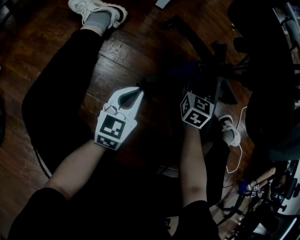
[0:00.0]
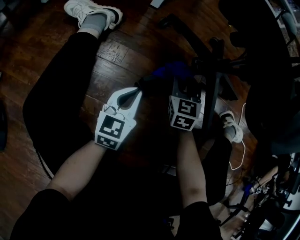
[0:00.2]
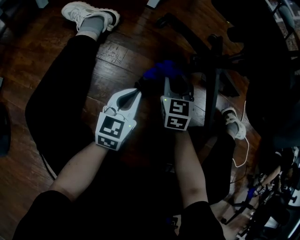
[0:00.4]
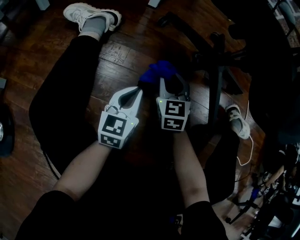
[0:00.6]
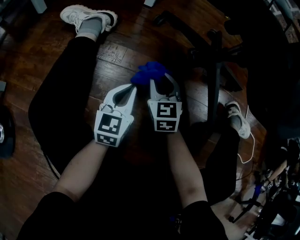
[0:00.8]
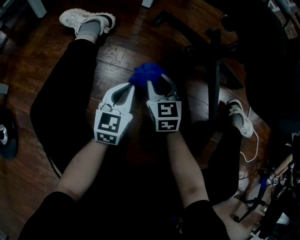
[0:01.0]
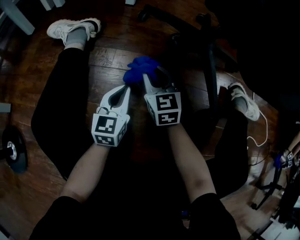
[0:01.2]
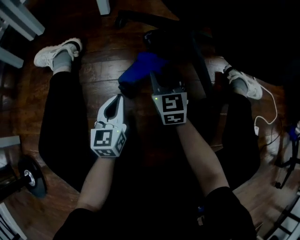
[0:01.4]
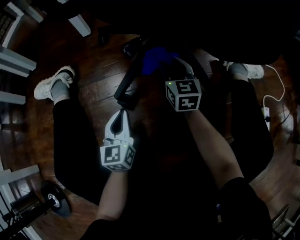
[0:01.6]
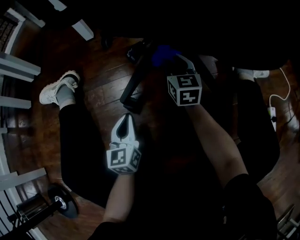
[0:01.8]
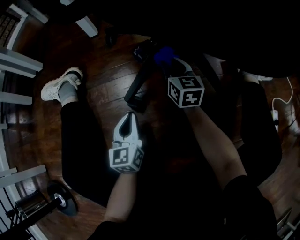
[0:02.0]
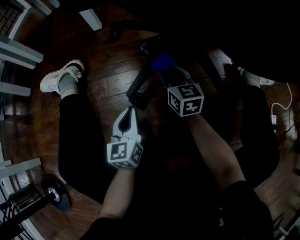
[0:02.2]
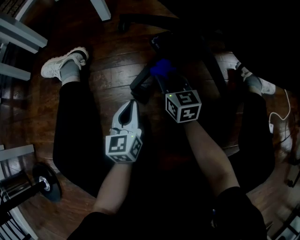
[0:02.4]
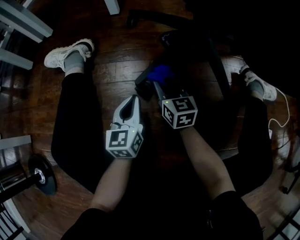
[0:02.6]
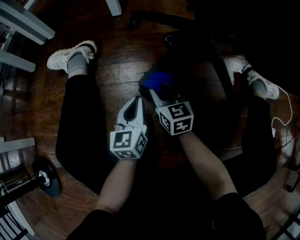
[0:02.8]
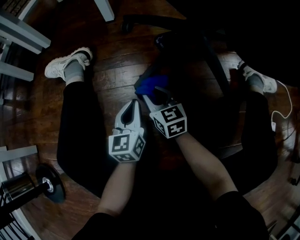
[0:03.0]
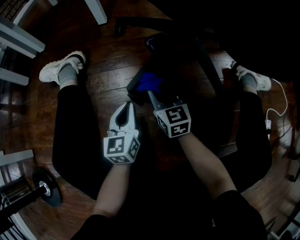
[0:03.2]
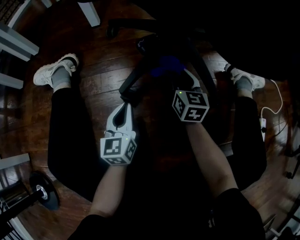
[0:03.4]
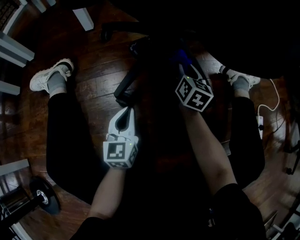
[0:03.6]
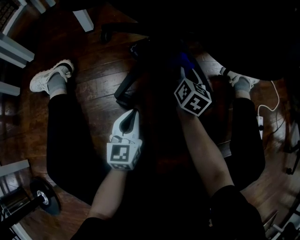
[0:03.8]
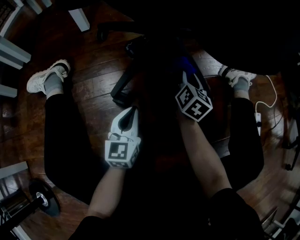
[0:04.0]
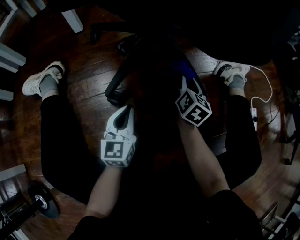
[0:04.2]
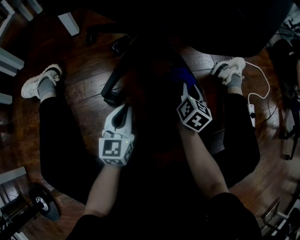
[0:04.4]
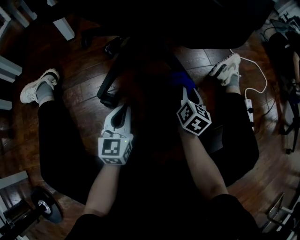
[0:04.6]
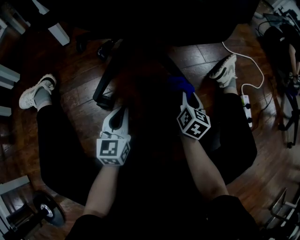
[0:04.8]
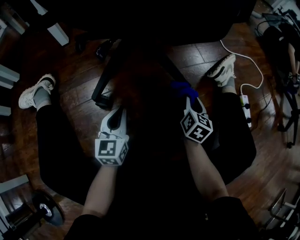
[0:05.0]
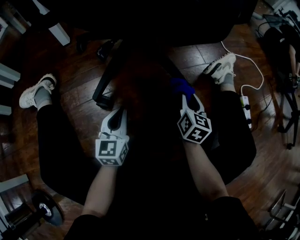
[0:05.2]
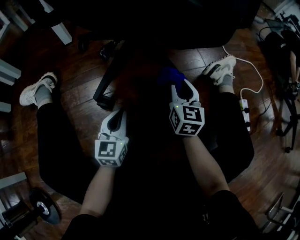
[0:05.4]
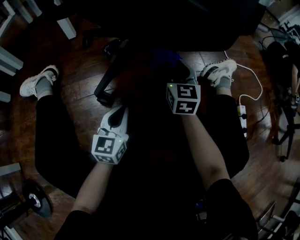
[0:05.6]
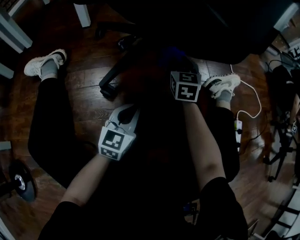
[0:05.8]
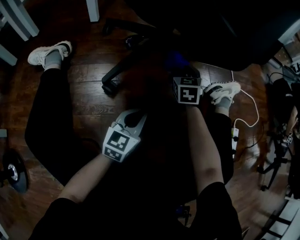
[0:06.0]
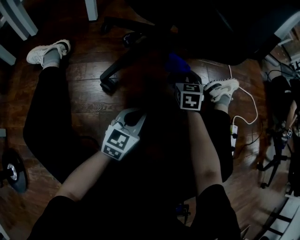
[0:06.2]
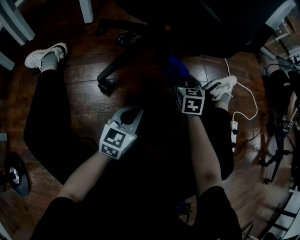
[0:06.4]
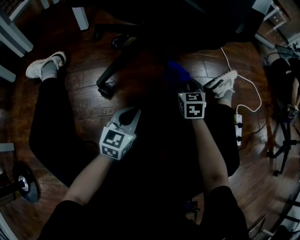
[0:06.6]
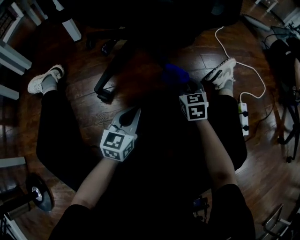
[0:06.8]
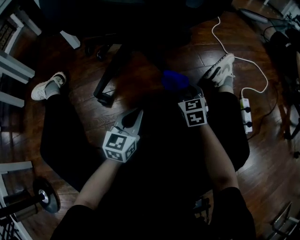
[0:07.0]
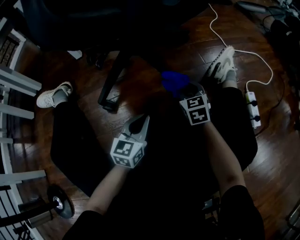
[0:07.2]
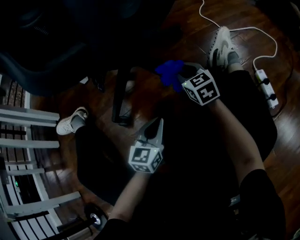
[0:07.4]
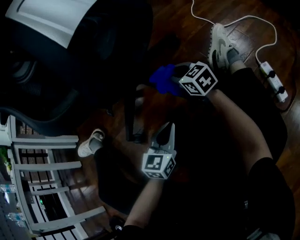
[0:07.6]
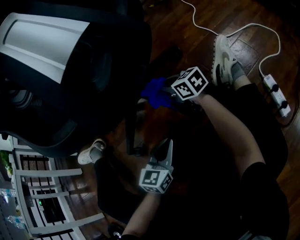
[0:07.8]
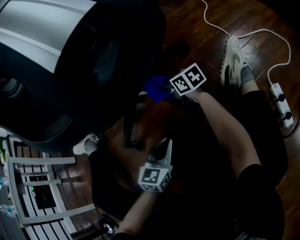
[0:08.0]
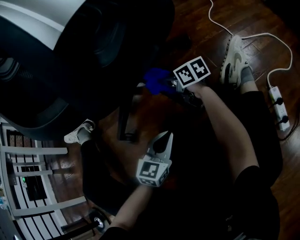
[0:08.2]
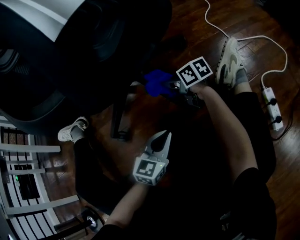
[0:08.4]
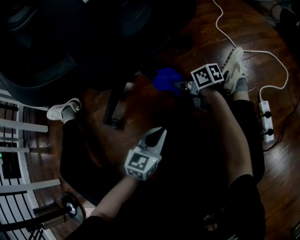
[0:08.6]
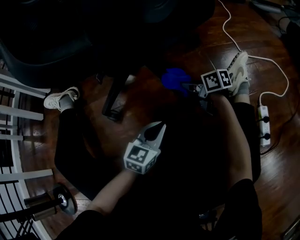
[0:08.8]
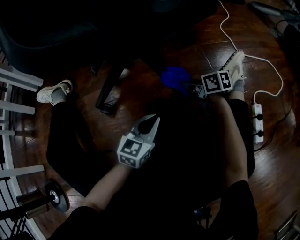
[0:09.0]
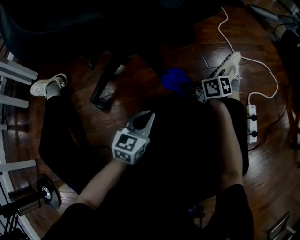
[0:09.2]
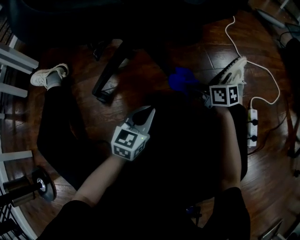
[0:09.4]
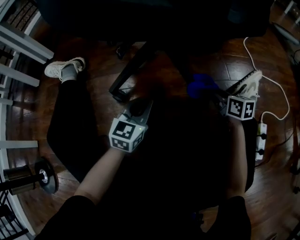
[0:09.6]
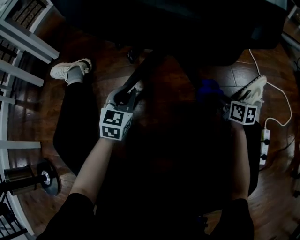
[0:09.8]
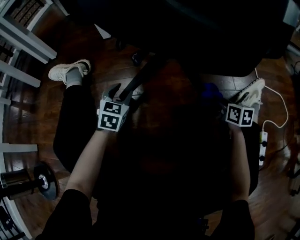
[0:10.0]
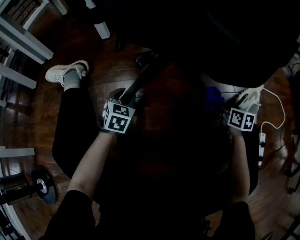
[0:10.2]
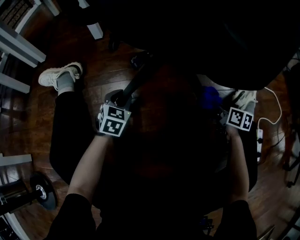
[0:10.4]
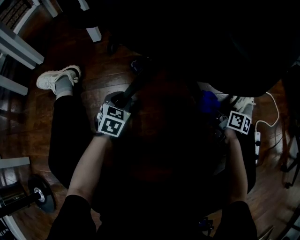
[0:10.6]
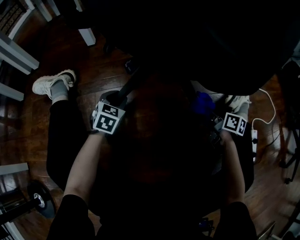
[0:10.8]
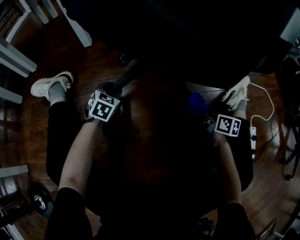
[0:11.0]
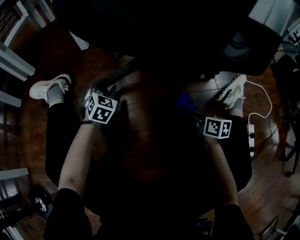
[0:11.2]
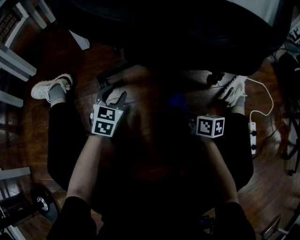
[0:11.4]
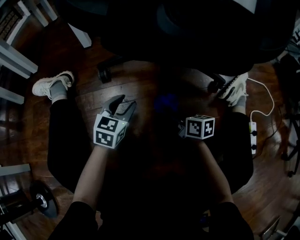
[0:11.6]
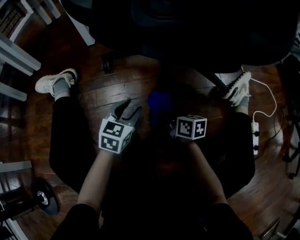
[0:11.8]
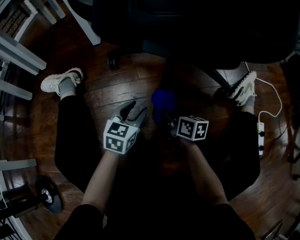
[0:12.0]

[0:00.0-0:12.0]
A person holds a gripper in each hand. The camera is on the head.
0:00.0 to 0:01.6: The right gripper heads to the right, covering roughly 5 cm, and turns by roughly 20 degrees.
0:01.6 to 0:03.0: The right gripper is displaced to the left, backward and downward by some 20 cm, and rotates about 30 degrees.
0:03.0 to 0:04.4: The right gripper changes place by roughly 30 cm, and turns by roughly 60 degrees, while the left gripper changes place by about 10 cm, and rotates approximately 20 degrees.
0:04.4 to 0:06.0: The left gripper goes some 10 cm to the right; the right gripper moves forward and to the left, some 10 cm, and twists about 50 degrees counterclockwise, seen from behind.
0:06.0 to 0:07.6: The grippers both shift to the right by about 10 cm. The right gripper changes its angle by approximately 40 degrees.
0:07.6 to 0:09.0: The right gripper goes approximately 10 cm downward, and swivels approximately 40 degrees.
0:09.0 to 0:10.4: The left gripper heads to the left and forward, covering approximately 25 cm, swivels about 30 degrees, and opens its fingers; the right gripper turns by about 20 degrees.
0:10.4 to 0:12.0: The left gripper is displaced backward and to the right by approximately 10 cm, and changes its angle by roughly 20 degrees; the right gripper heads to the left, covering approximately 20 cm.

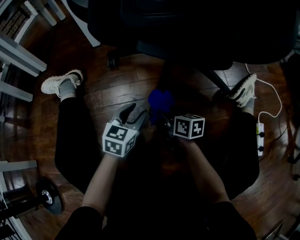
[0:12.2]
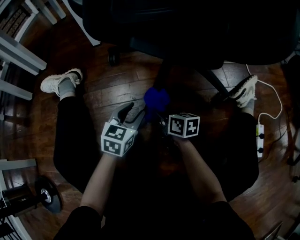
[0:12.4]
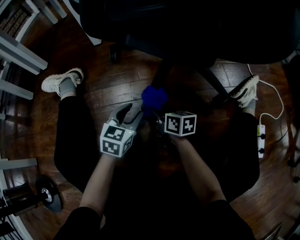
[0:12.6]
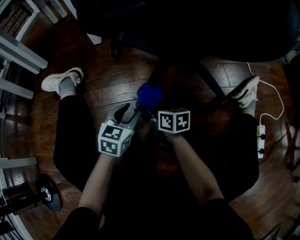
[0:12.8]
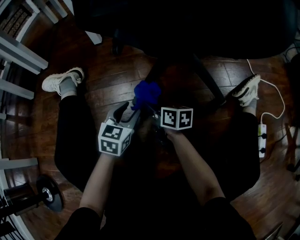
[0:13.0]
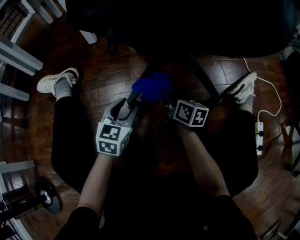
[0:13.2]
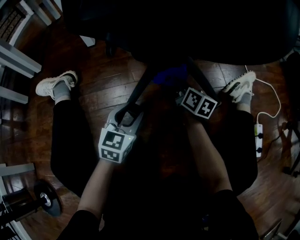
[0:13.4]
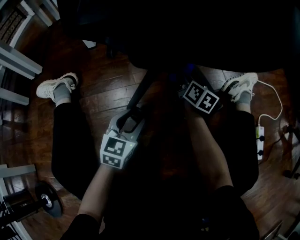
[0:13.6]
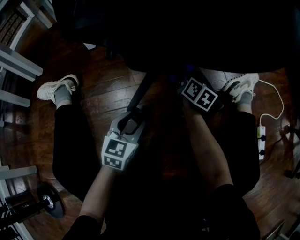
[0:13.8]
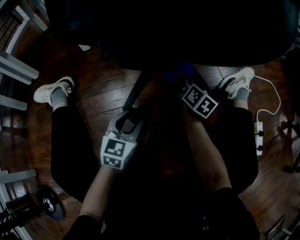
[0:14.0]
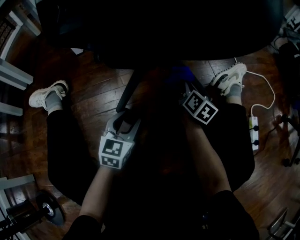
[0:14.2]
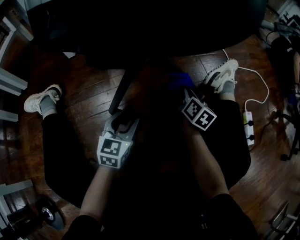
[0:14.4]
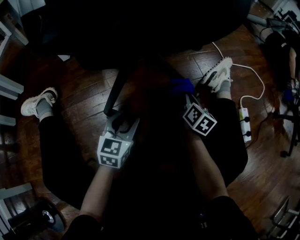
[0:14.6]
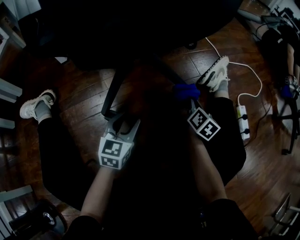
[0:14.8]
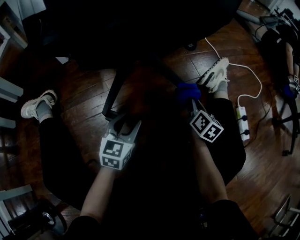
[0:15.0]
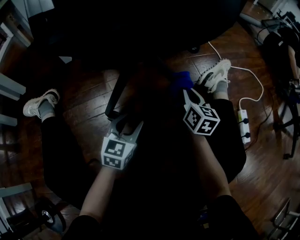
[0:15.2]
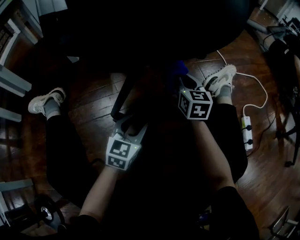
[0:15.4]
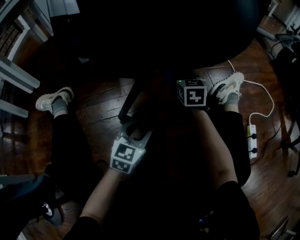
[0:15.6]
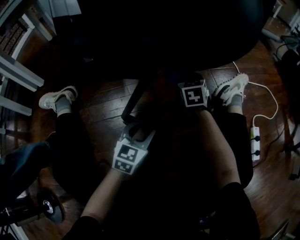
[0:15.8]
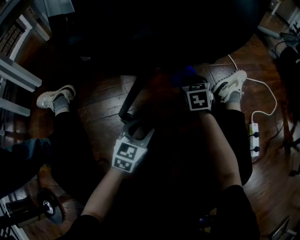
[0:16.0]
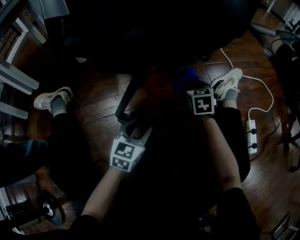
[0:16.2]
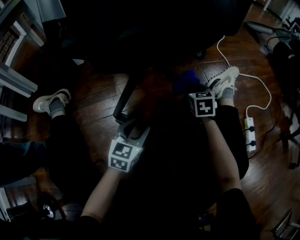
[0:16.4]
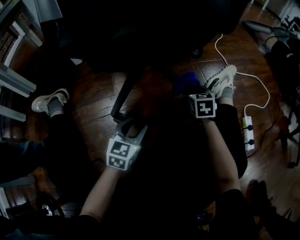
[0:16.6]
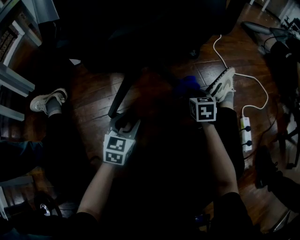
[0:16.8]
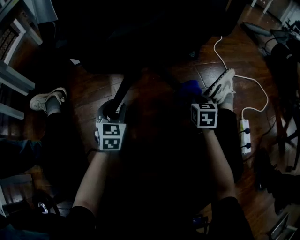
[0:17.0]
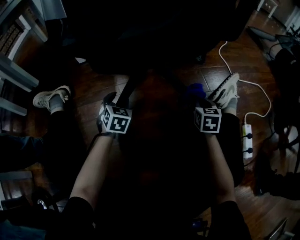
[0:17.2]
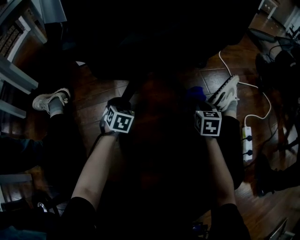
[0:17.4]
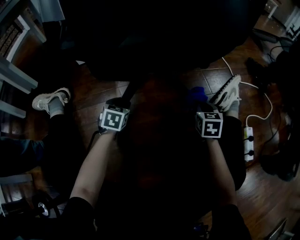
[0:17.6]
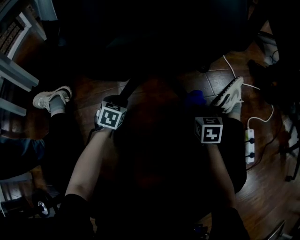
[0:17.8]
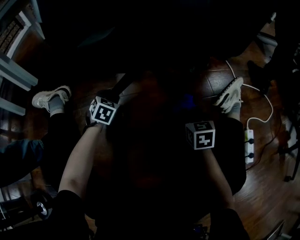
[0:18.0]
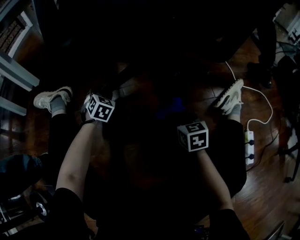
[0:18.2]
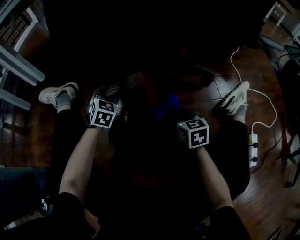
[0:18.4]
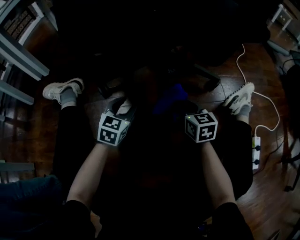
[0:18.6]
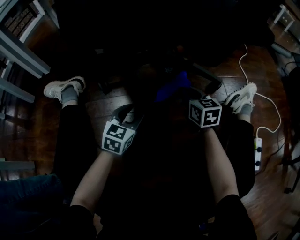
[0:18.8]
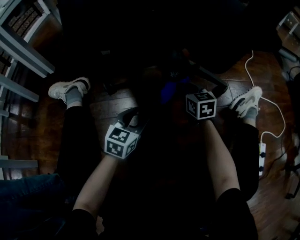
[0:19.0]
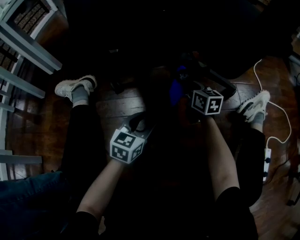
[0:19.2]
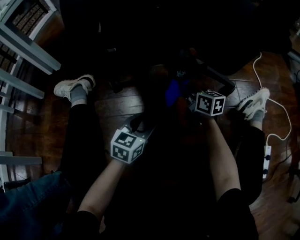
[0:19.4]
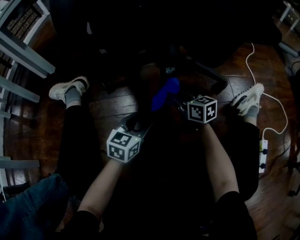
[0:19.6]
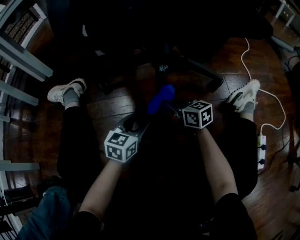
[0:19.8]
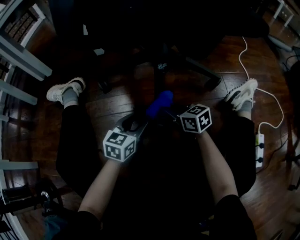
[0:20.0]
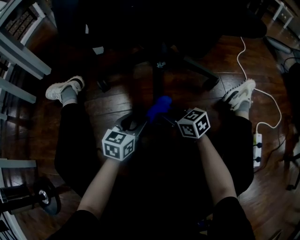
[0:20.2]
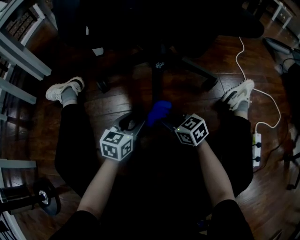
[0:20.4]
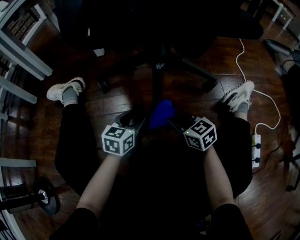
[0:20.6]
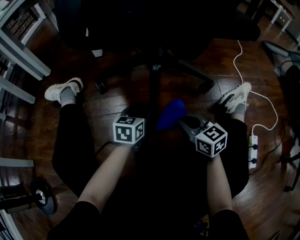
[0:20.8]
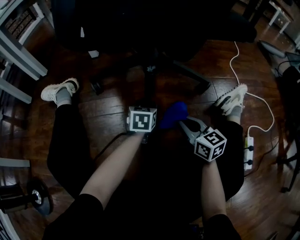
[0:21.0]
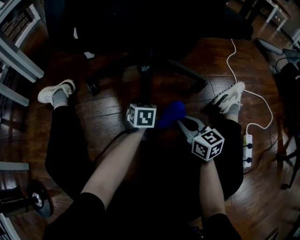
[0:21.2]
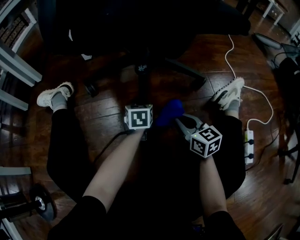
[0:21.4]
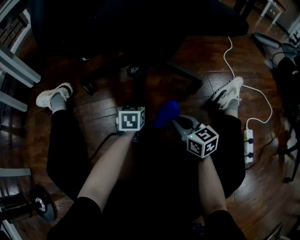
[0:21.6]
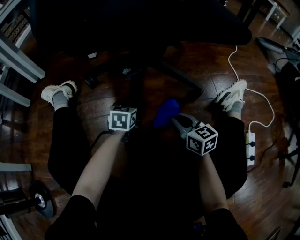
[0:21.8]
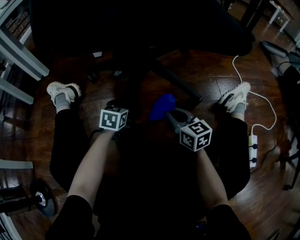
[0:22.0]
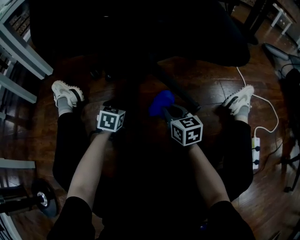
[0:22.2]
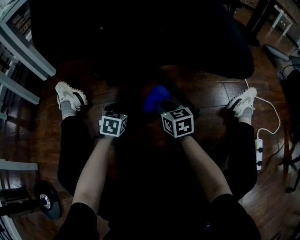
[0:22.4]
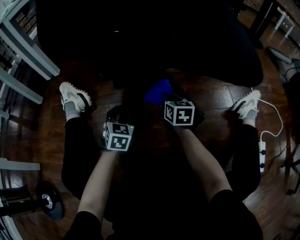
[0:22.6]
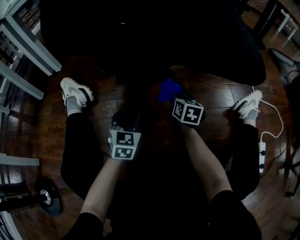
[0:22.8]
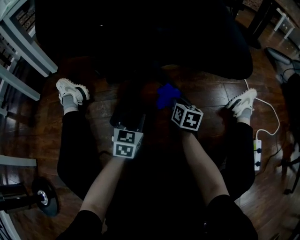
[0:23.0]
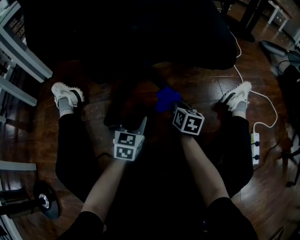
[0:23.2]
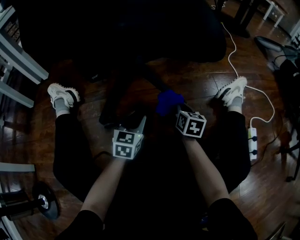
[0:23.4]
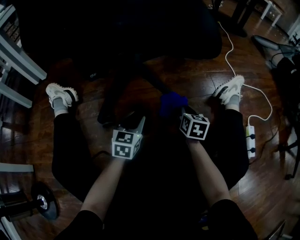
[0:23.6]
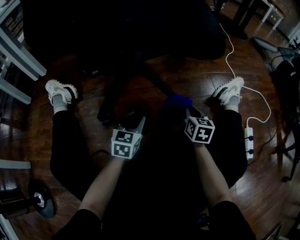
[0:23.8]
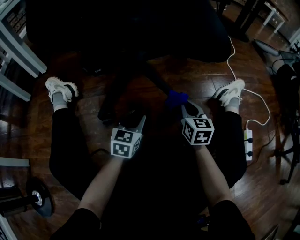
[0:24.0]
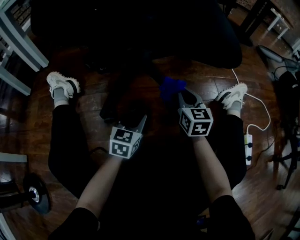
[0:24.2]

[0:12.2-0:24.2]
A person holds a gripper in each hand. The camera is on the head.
0:12.2 to 0:13.8: The right gripper heads forward and to the right, covering some 20 cm, and swivels approximately 30 degrees.
0:13.8 to 0:15.2: The left gripper goes roughly 10 cm to the right; the right gripper heads to the right, backward and upward, covering some 15 cm, and rotates about 20 degrees.
0:15.2 to 0:16.6: The right gripper moves about 10 cm to the left and comes back, and changes its angle by approximately 30 degrees.
0:16.6 to 0:18.2: The right gripper changes place by roughly 15 cm. Meanwhile the left gripper shifts by approximately 25 cm, and turns by some 40 degrees.
0:18.2 to 0:19.8: The left gripper shifts some 20 cm backward and to the right, and swivels about 40 degrees, while the right gripper heads to the left, covering approximately 10 cm, travels forward and back again, some 15 cm each way, and swivels approximately 30 degrees.
0:19.8 to 0:21.2: The left gripper shifts approximately 10 cm to the right and forward, and swivels some 20 degrees. The right gripper travels backward, to the right and upward by approximately 15 cm.
0:21.2 to 0:22.6: The right gripper heads forward and to the left, covering about 20 cm, while the left gripper goes roughly 20 cm to the left.
0:22.6 to 0:24.2: The right gripper moves to the right, upward and backward, some 15 cm. The left gripper heads to the right and backward, covering some 15 cm, and swivels approximately 20 degrees.
